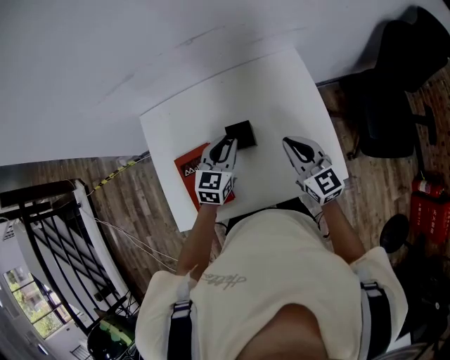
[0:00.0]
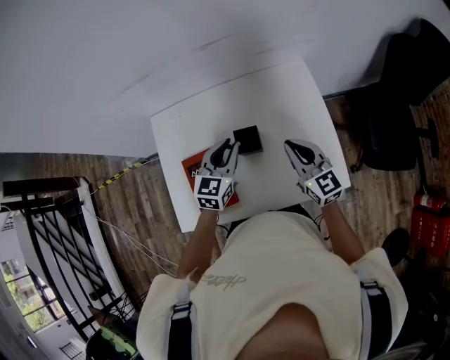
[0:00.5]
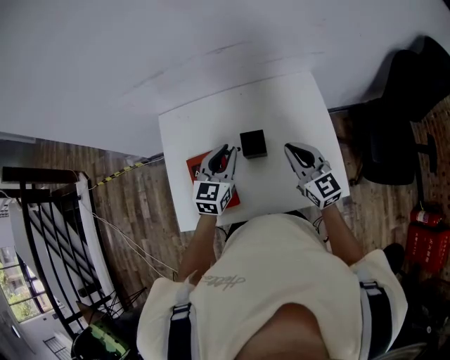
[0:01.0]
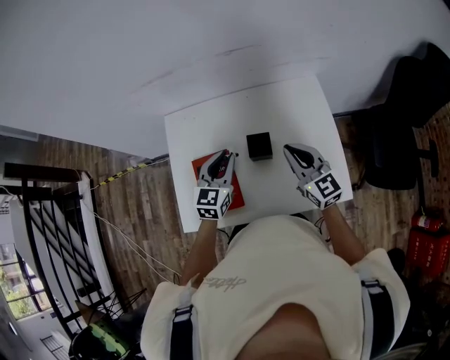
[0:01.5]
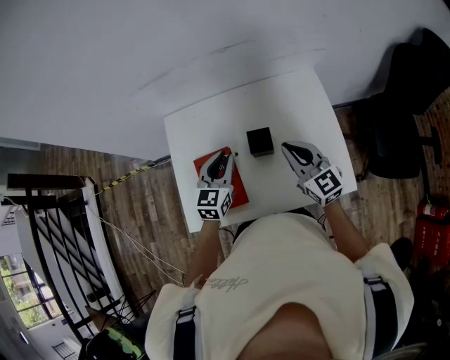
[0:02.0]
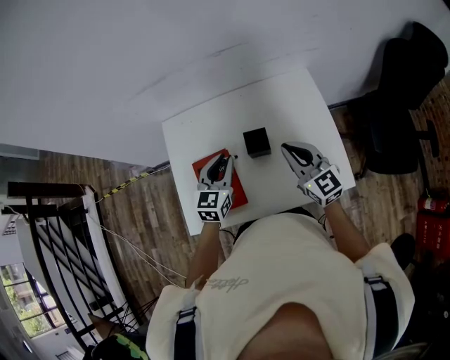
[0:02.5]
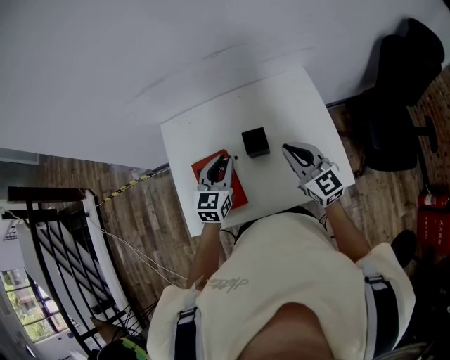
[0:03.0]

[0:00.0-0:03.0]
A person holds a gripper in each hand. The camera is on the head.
0:00.0 to 0:01.5: The right gripper shifts about 5 cm to the left, while the left gripper goes approximately 10 cm to the left and upward.
0:01.5 to 0:03.0: There are only small adjustments of the grippers.

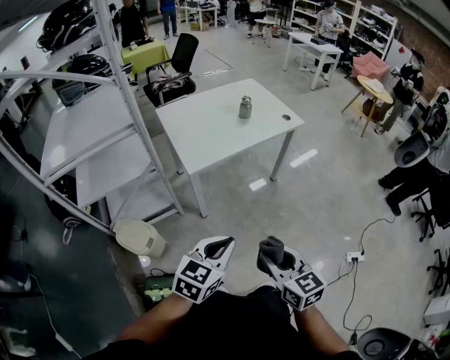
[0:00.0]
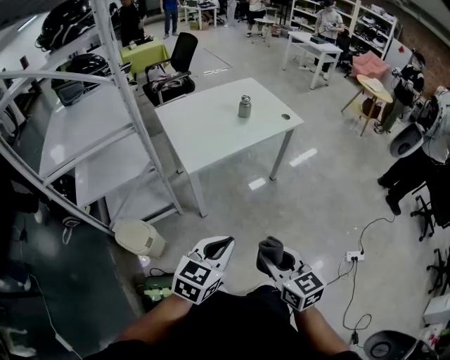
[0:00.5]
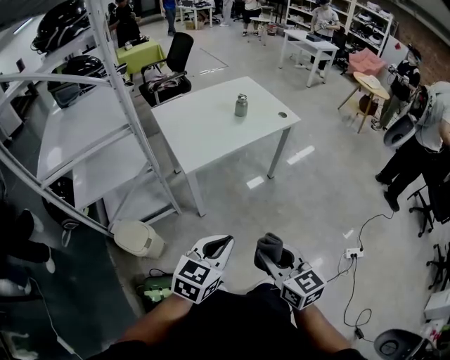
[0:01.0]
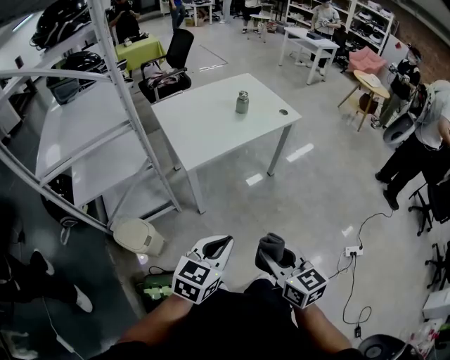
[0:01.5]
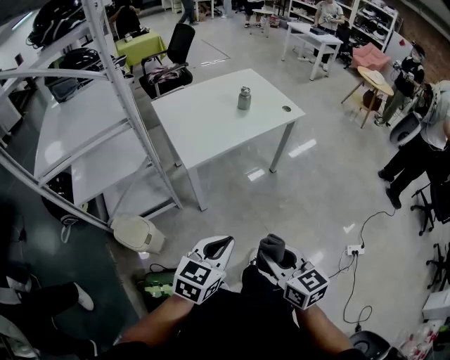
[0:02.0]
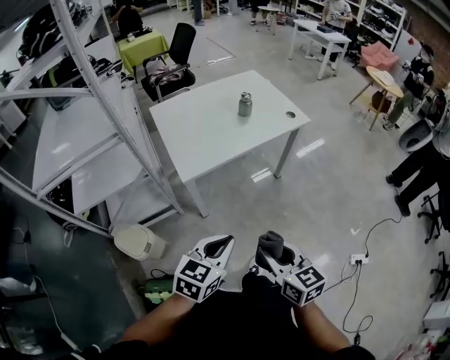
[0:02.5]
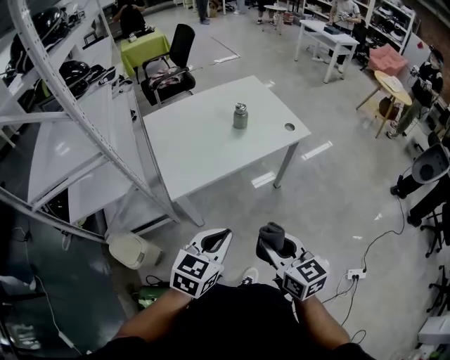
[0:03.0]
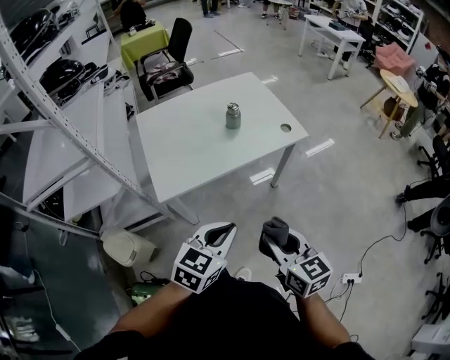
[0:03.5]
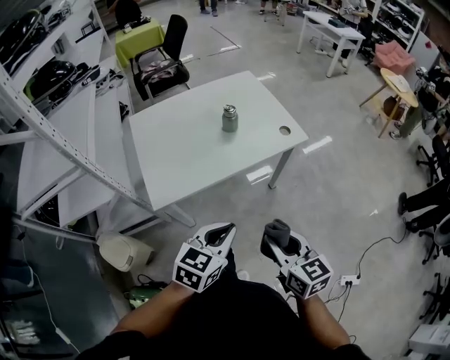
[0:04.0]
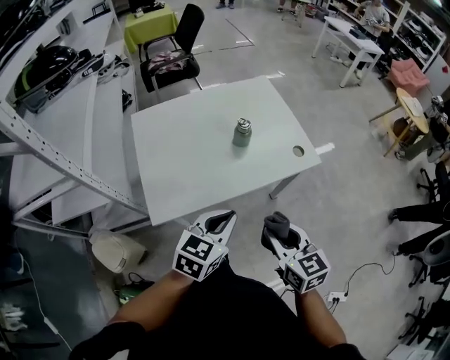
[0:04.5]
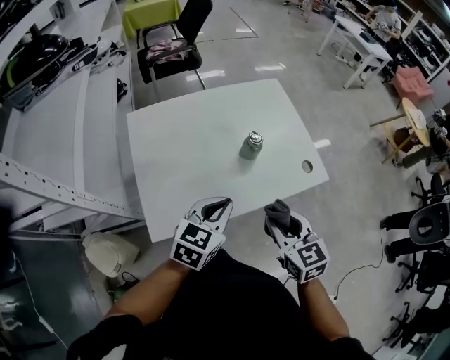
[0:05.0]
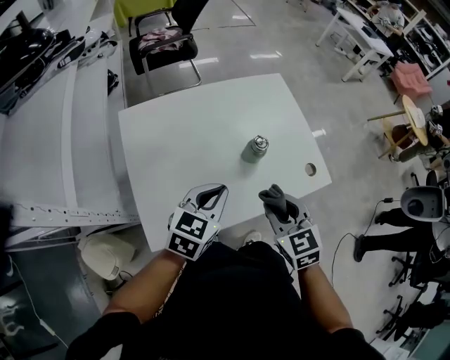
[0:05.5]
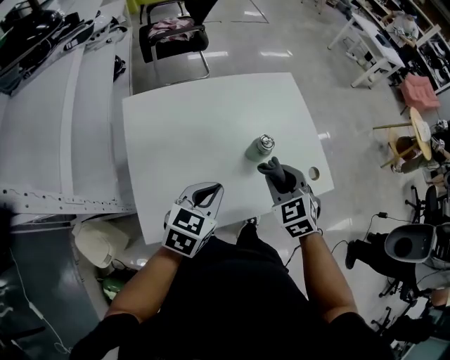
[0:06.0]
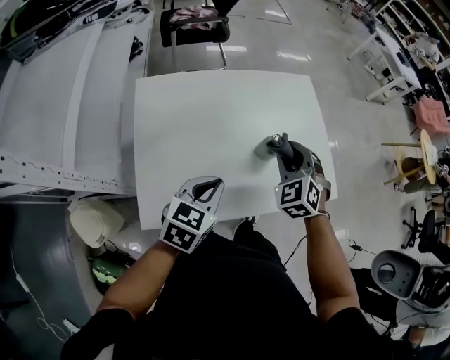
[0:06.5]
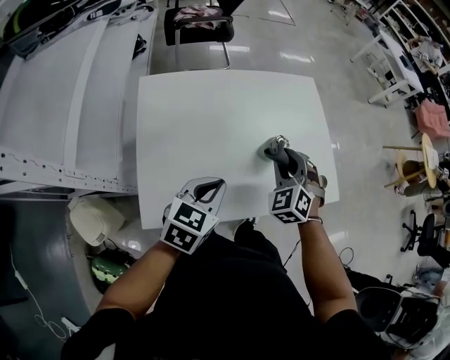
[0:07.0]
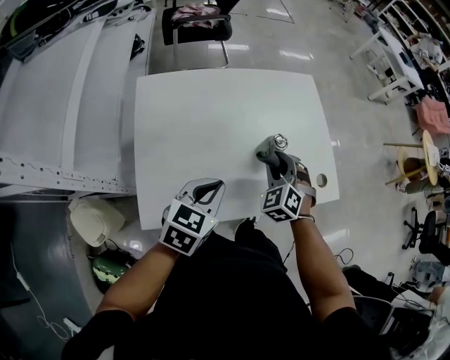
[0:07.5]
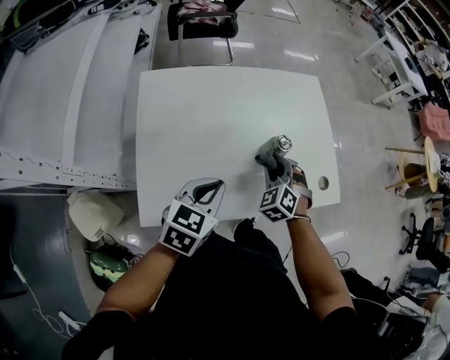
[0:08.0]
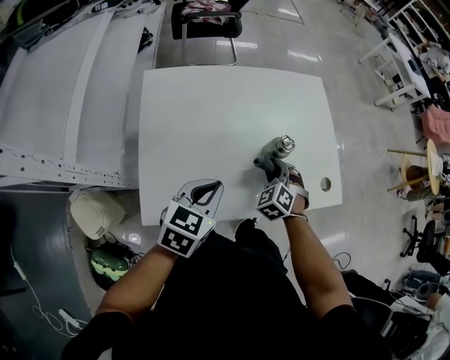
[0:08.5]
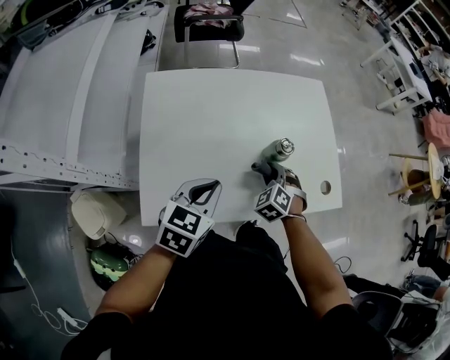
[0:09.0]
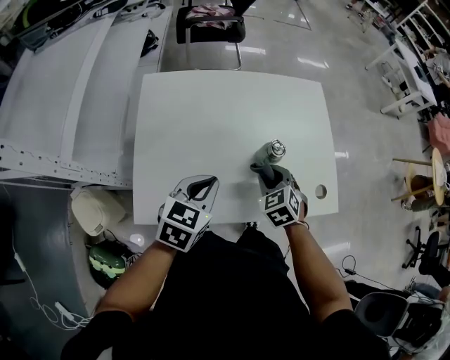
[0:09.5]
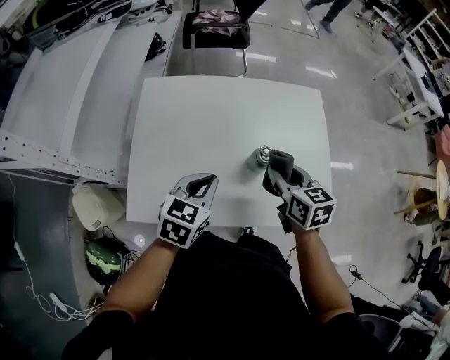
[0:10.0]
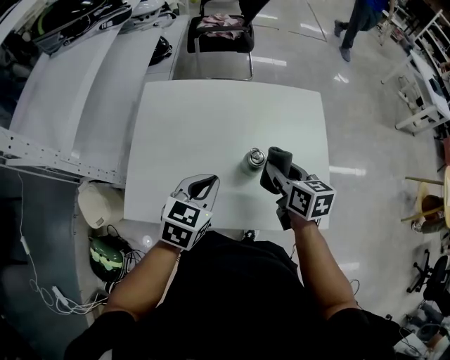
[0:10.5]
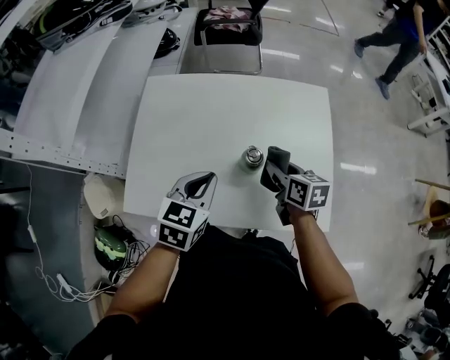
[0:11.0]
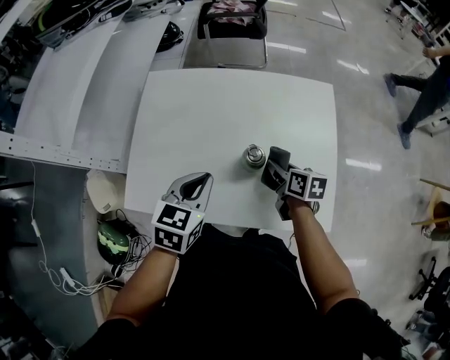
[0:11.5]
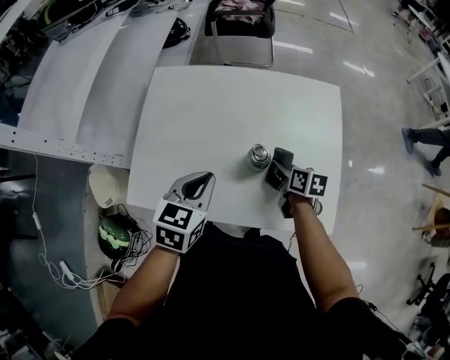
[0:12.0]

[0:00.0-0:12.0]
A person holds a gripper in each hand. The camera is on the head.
0:00.0 to 0:02.0: The grippers stay close to where they were, moving slightly.
0:02.0 to 0:04.0: The two grippers go roughly 35 cm forward and to the right.
0:04.0 to 0:06.0: The left gripper moves forward and to the left, approximately 35 cm, while the right gripper moves forward, roughly 40 cm, and twists about 40 degrees counterclockwise, seen from behind.
0:06.0 to 0:08.0: The right gripper heads downward, covering about 10 cm, and changes its angle by some 20 degrees.
0:08.0 to 0:10.0: The right gripper moves upward, some 10 cm, and rolls clockwise, seen from behind, by some 50 degrees; the left gripper changes place by about 5 cm.
0:10.0 to 0:12.0: The right gripper moves downward and to the right, approximately 15 cm, and changes its angle by roughly 30 degrees.

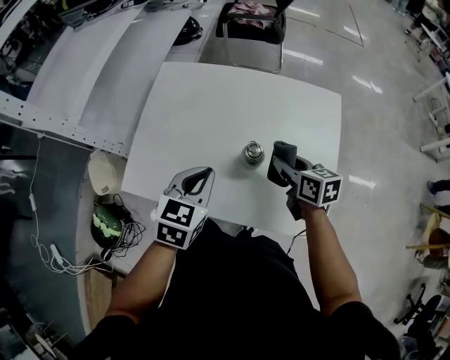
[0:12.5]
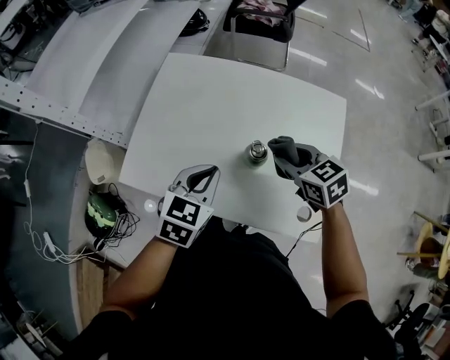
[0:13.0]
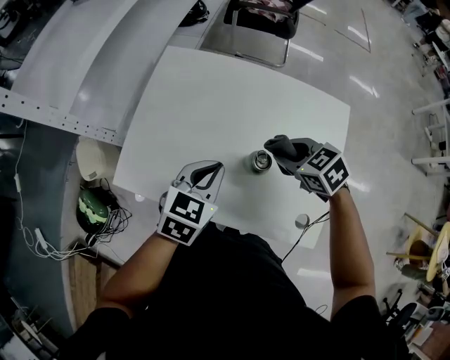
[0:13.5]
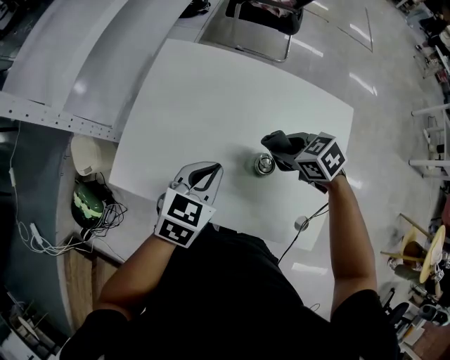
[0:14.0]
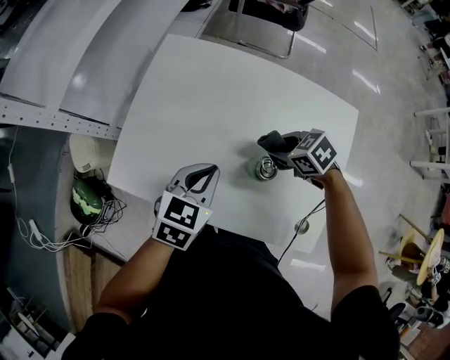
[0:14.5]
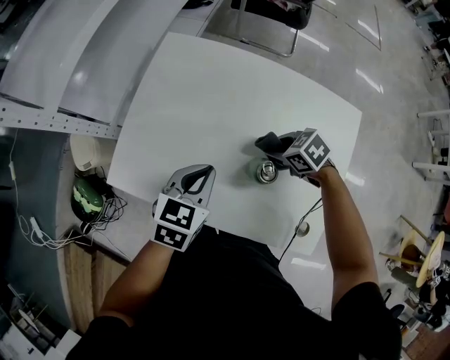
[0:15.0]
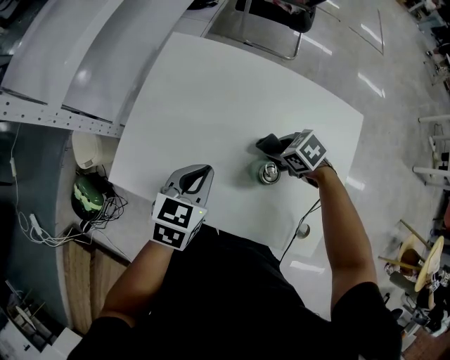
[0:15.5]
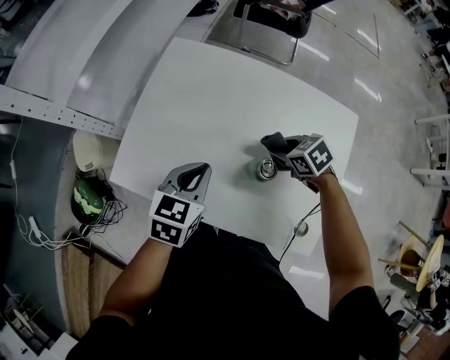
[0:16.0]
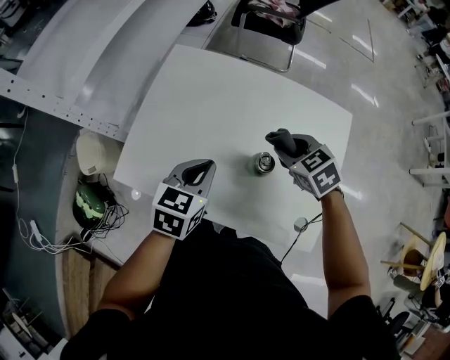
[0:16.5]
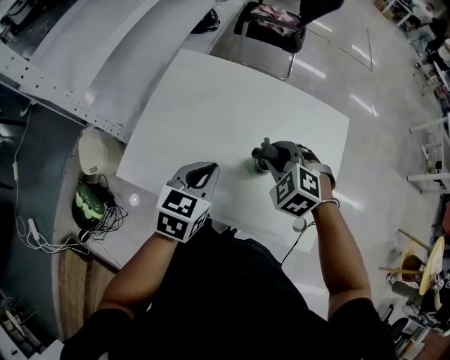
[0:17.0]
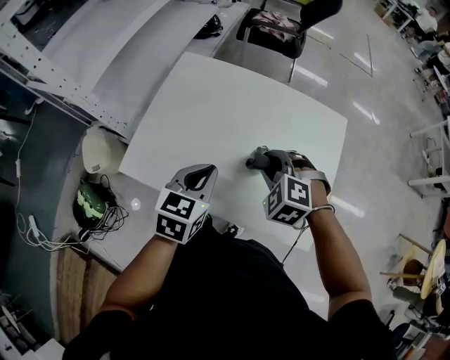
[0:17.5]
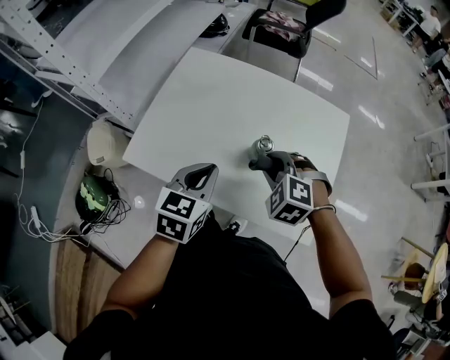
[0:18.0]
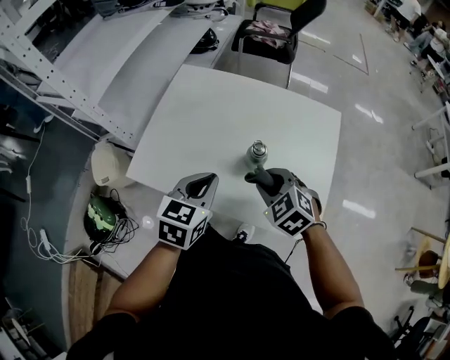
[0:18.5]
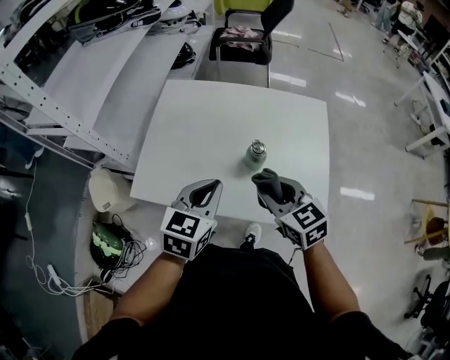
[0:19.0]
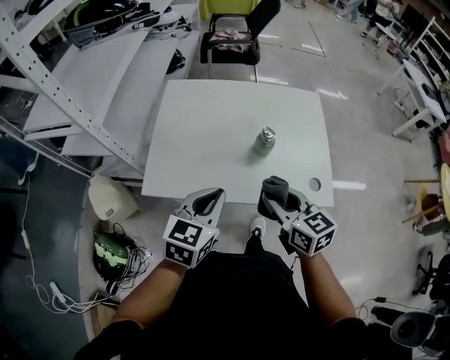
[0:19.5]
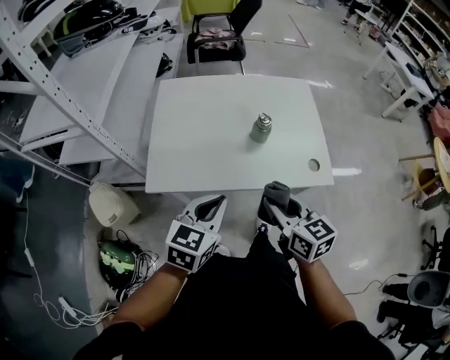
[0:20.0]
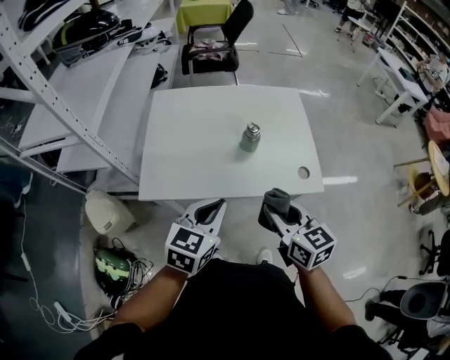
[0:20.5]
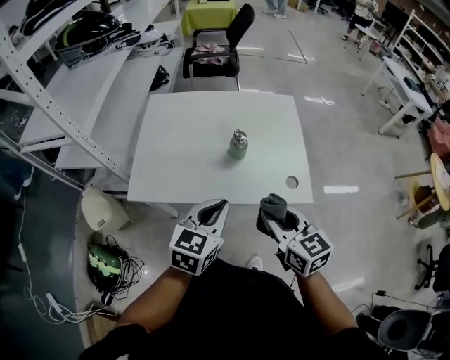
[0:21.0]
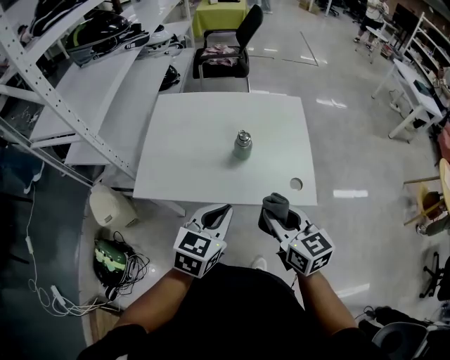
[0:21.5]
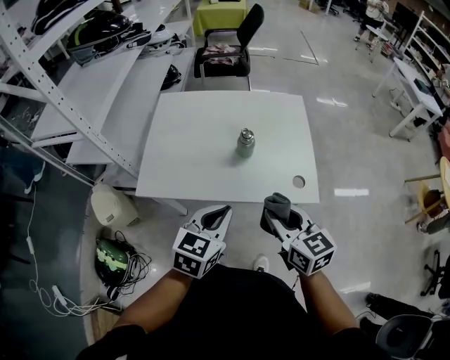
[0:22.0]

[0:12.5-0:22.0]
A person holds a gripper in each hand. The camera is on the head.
0:12.5 to 0:14.5: The left gripper goes approximately 5 cm forward; the right gripper heads forward and downward, covering about 10 cm, and swivels about 50 degrees.
0:14.5 to 0:16.5: The right gripper heads upward, covering roughly 10 cm, and rotates about 20 degrees.
0:16.5 to 0:18.0: Both grippers travel together backward, about 10 cm. The right gripper rotates roughly 40 degrees.
0:18.0 to 0:20.0: Both grippers move backward and to the left, some 20 cm. The left gripper changes its angle by approximately 30 degrees. The right gripper rotates around the line of its fingers by some 80 degrees, clockwise from behind.
0:20.0 to 0:22.0: The two grippers go approximately 10 cm to the right.

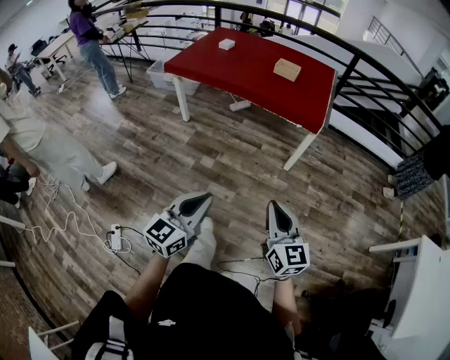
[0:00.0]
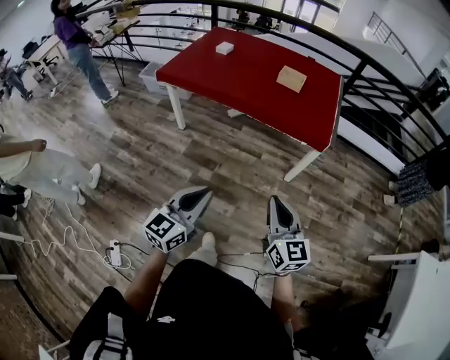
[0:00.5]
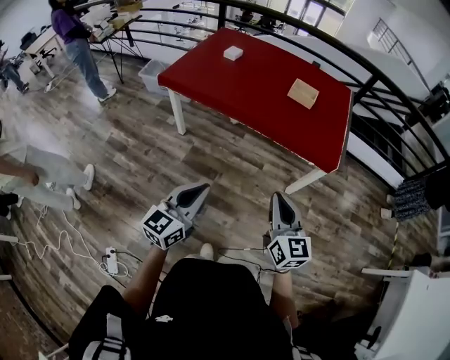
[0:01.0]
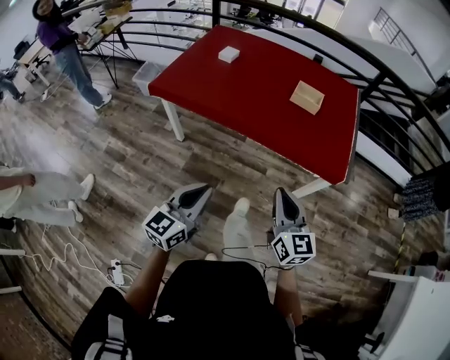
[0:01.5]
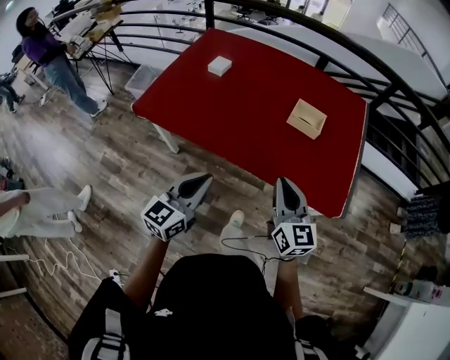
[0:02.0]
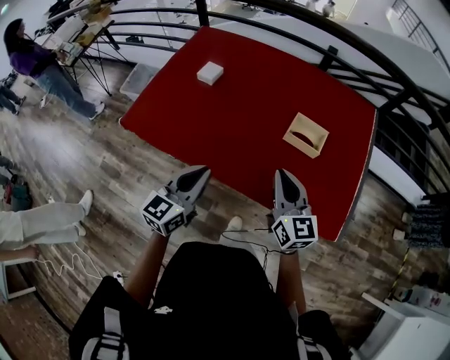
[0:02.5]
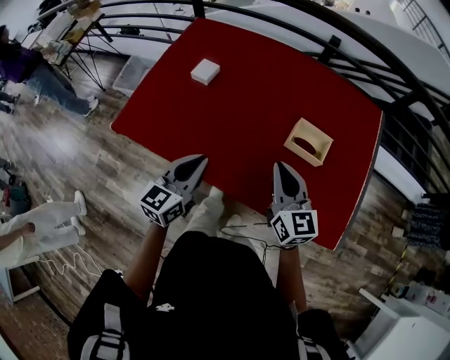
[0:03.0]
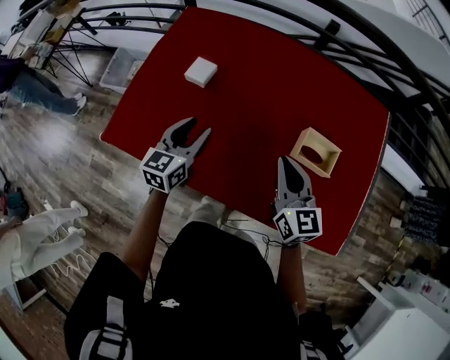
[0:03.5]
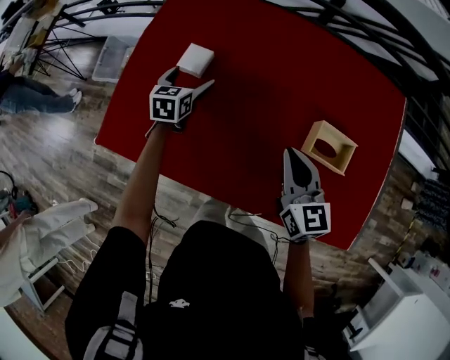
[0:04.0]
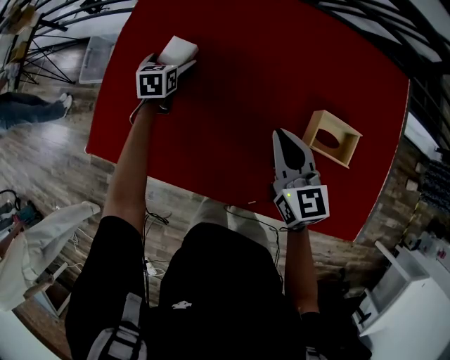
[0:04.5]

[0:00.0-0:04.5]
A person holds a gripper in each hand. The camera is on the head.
0:00.0 to 0:02.0: The two grippers travel together, forward, some 70 cm.
0:02.0 to 0:04.5: Both grippers are carried forward, some 60 cm. The left gripper tilts its fingers approximately 40 degrees downward, and opens up.
